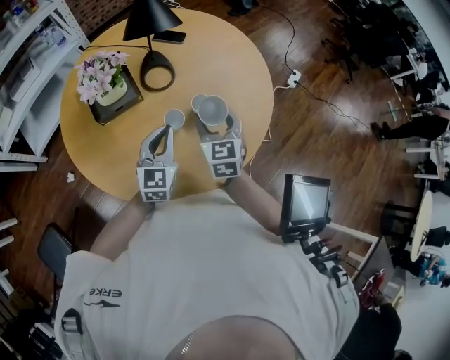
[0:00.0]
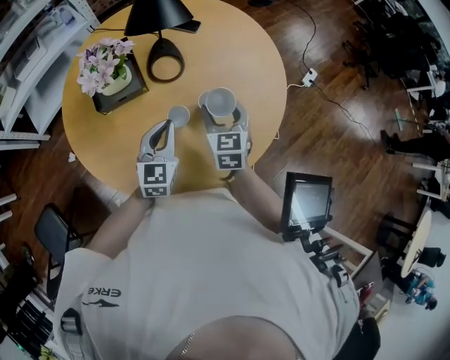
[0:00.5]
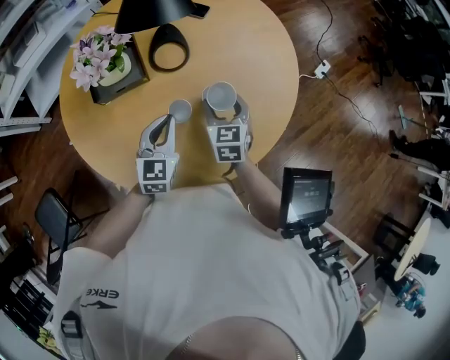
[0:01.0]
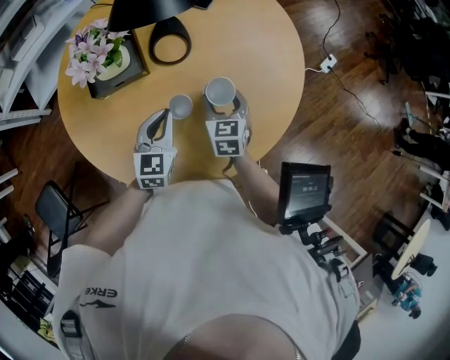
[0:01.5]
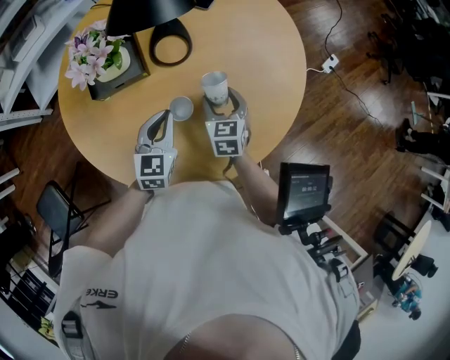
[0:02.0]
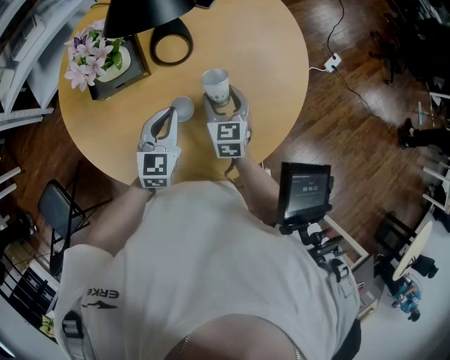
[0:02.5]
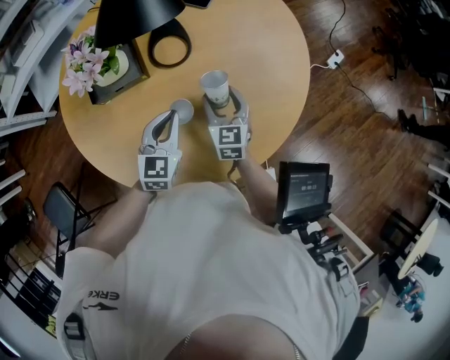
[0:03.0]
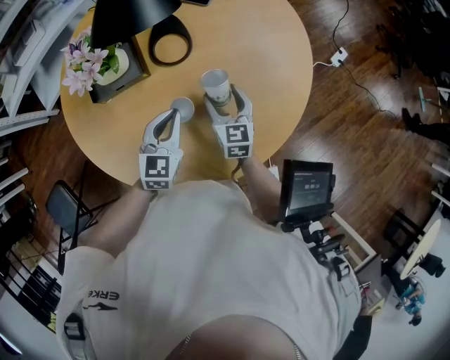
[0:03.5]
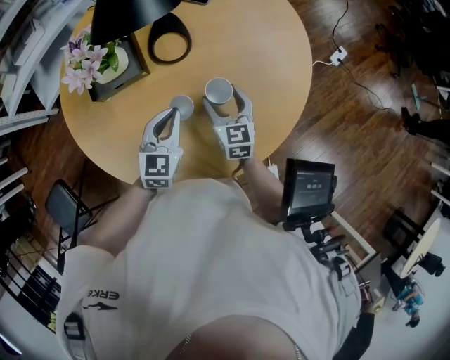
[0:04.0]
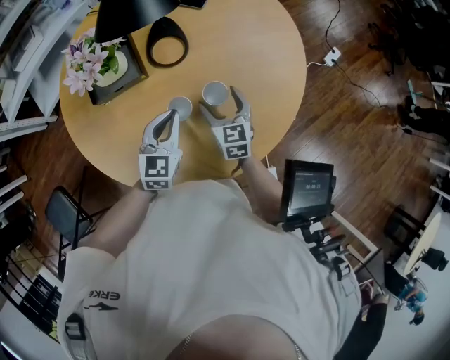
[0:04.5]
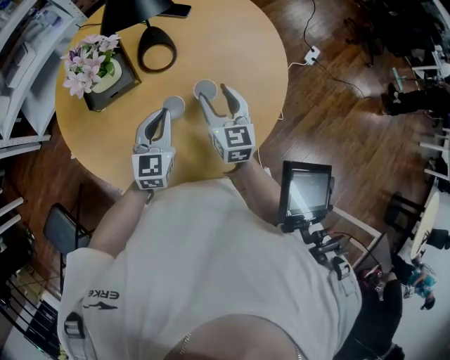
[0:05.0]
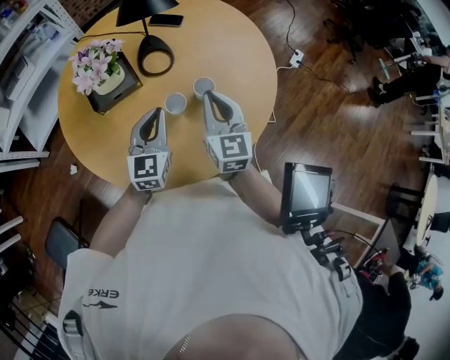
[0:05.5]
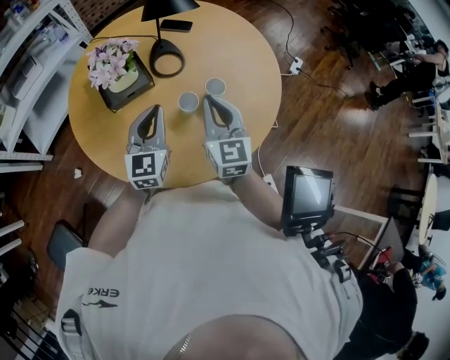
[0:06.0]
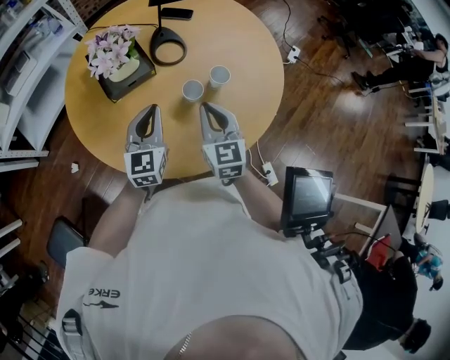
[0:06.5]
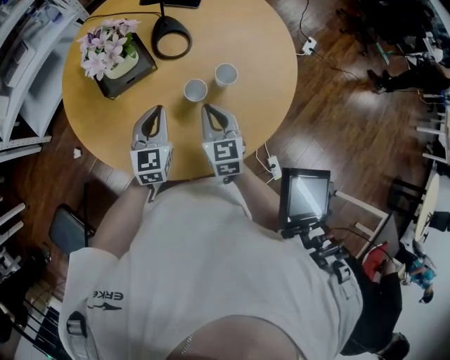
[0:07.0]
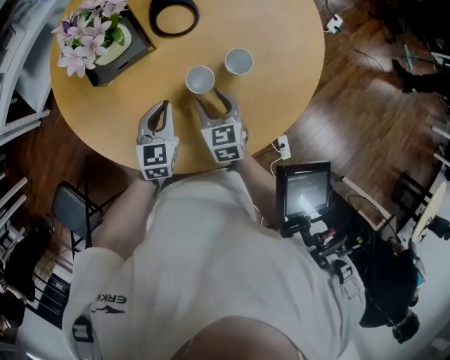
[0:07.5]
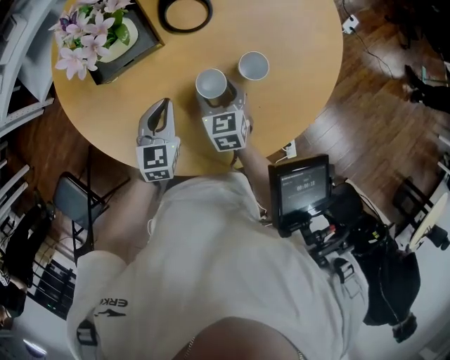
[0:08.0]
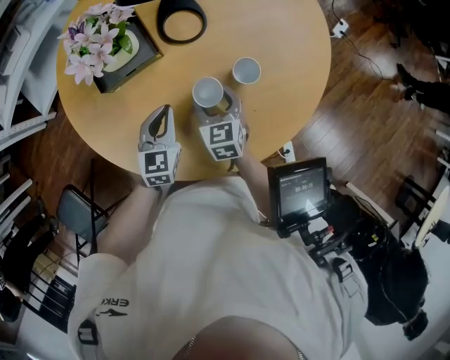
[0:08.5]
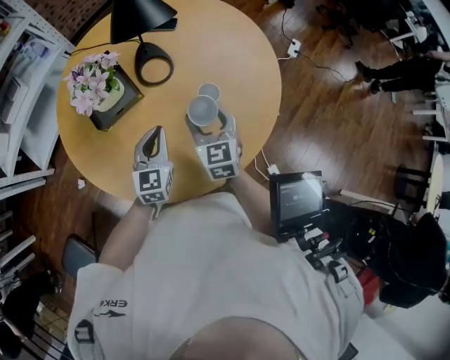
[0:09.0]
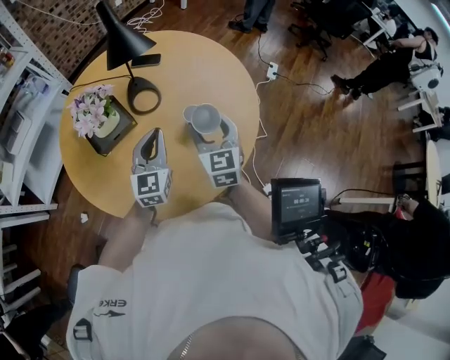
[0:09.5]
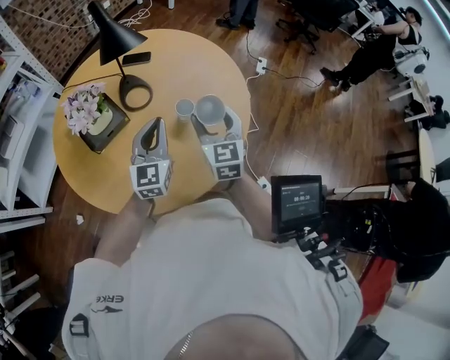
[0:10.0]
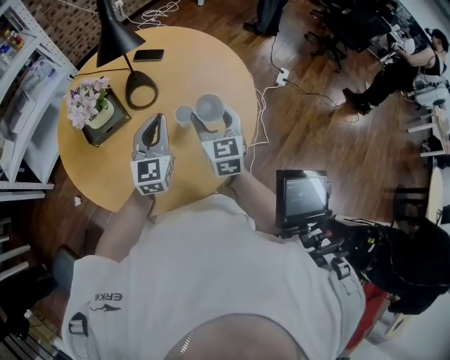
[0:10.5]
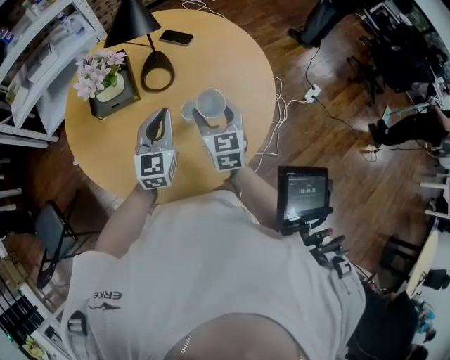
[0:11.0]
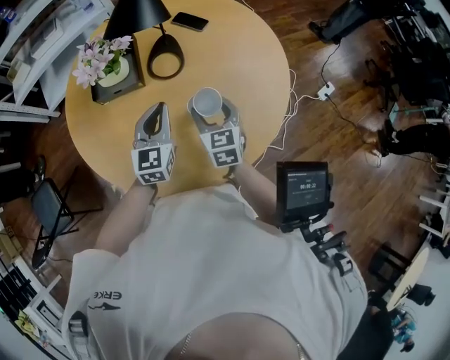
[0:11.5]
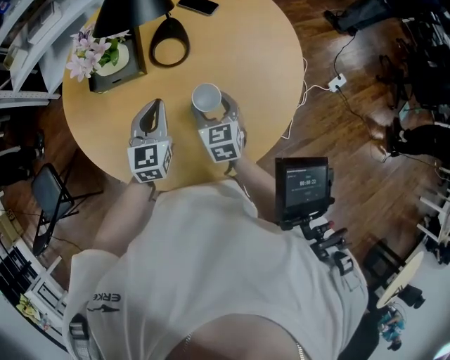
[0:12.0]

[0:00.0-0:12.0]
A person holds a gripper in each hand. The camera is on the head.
0:00.0 to 0:02.0: The right gripper is displaced downward and forward by some 15 cm; the left gripper heads downward, covering roughly 5 cm.
0:02.0 to 0:04.0: The grippers make only small movements.
0:04.0 to 0:06.0: The left gripper is displaced upward, to the left and backward by some 15 cm, and turns by approximately 20 degrees; the right gripper travels upward and backward by some 20 cm, rotates some 20 degrees, and closes up.
0:06.0 to 0:08.0: Both grippers travel together downward, about 25 cm. The right gripper angles its fingers downward, by about 30 degrees, and opens up, while the left gripper changes its angle by roughly 30 degrees.
0:08.0 to 0:10.0: The grippers both shift upward and to the right by roughly 30 cm. The left gripper tips its fingers upward by roughly 30 degrees. The right gripper turns by some 30 degrees.
0:10.0 to 0:12.0: The right gripper moves downward, about 20 cm, and turns by some 40 degrees. The left gripper shifts approximately 10 cm downward, and changes its angle by some 40 degrees.

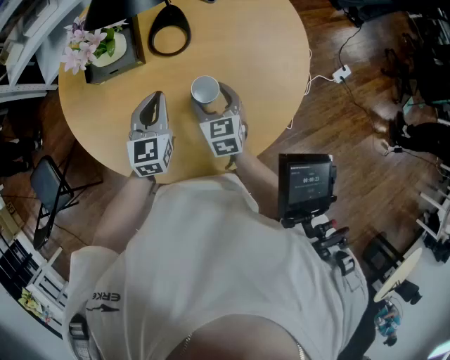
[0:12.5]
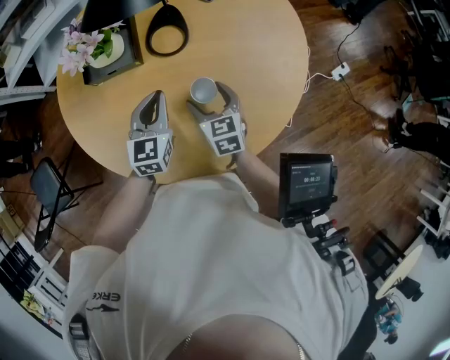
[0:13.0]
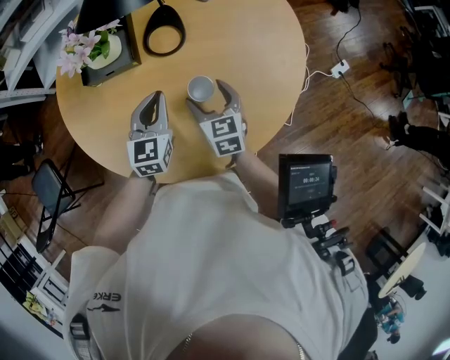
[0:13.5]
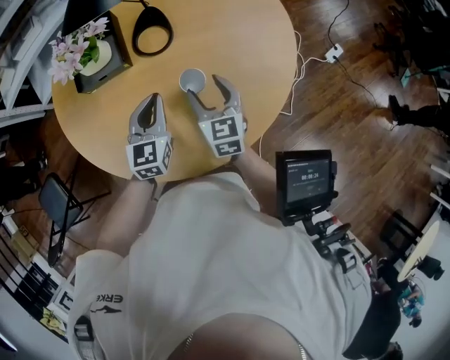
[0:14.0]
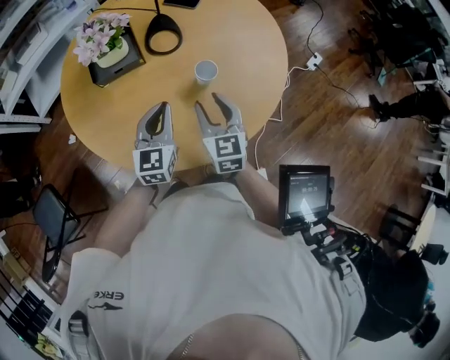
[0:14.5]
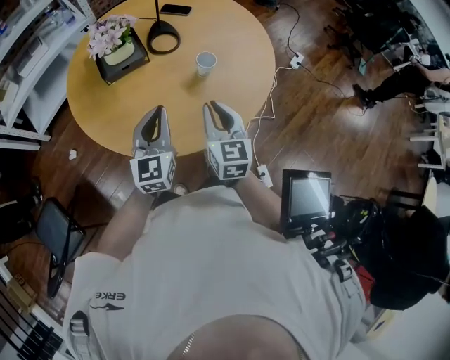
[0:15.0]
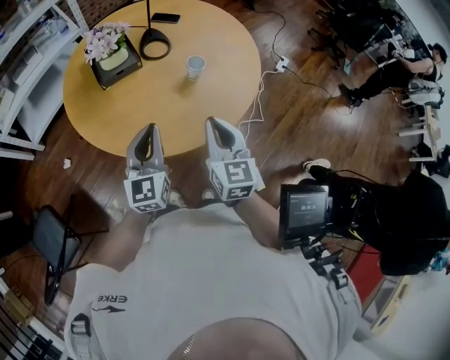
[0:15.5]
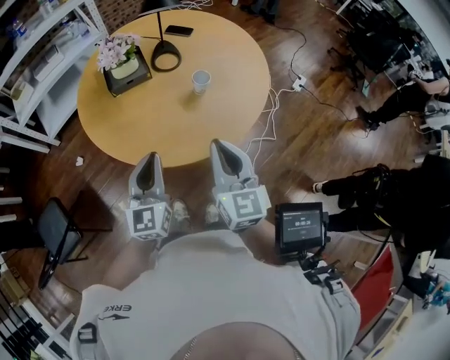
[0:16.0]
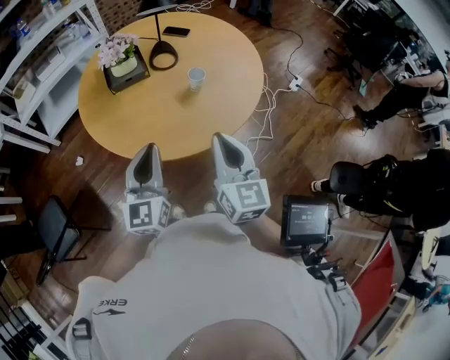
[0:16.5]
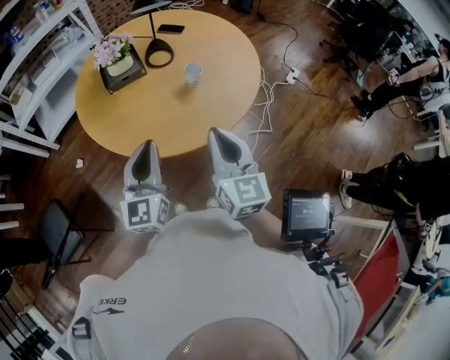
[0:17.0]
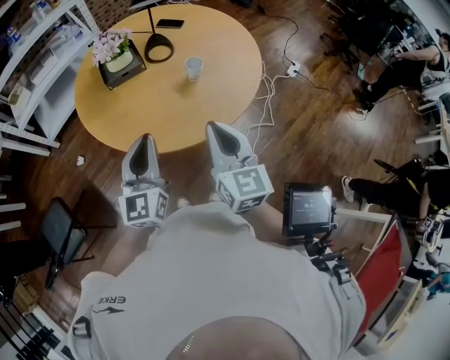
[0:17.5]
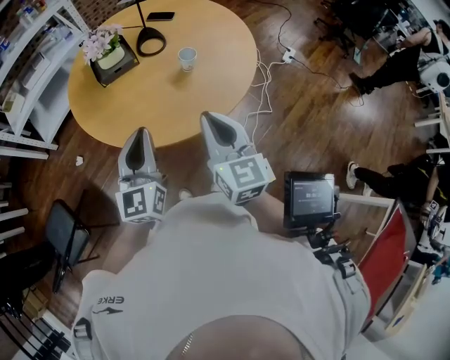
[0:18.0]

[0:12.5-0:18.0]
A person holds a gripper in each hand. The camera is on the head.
0:12.5 to 0:14.5: The right gripper moves backward and upward, roughly 15 cm, and closes its fingers; the left gripper travels backward by about 10 cm.
0:14.5 to 0:16.0: Both grippers travel together backward and upward, about 25 cm. The right gripper closes.
0:16.0 to 0:18.0: The grippers make only small movements.

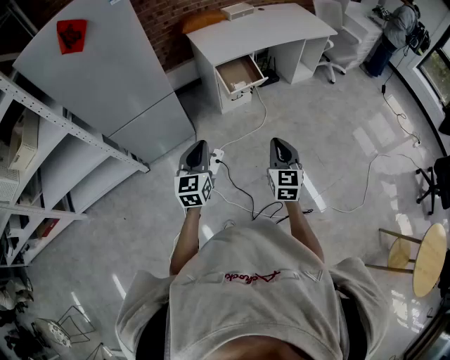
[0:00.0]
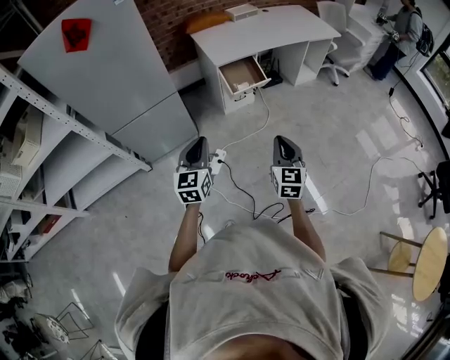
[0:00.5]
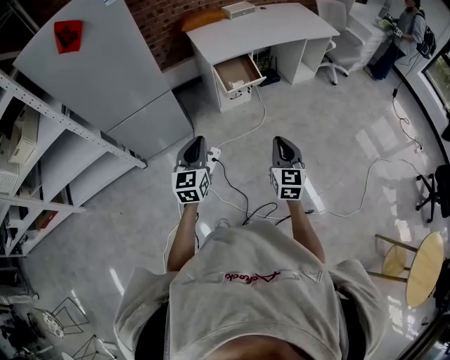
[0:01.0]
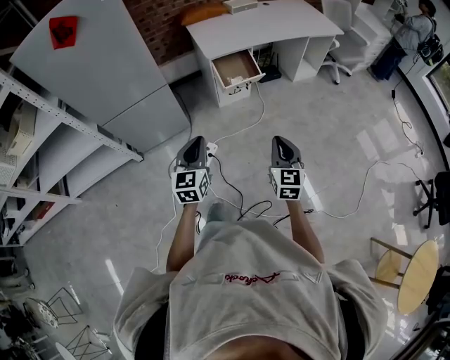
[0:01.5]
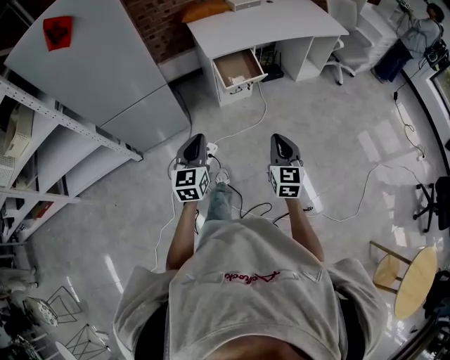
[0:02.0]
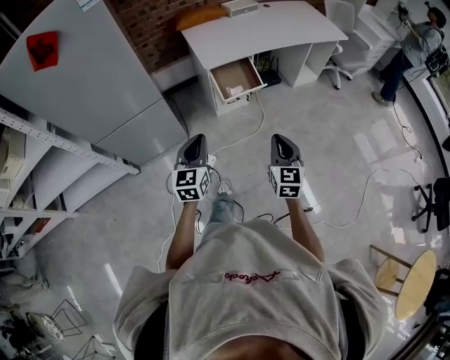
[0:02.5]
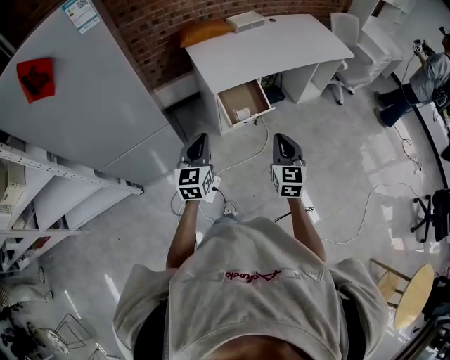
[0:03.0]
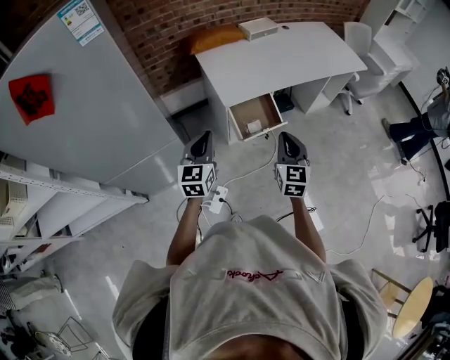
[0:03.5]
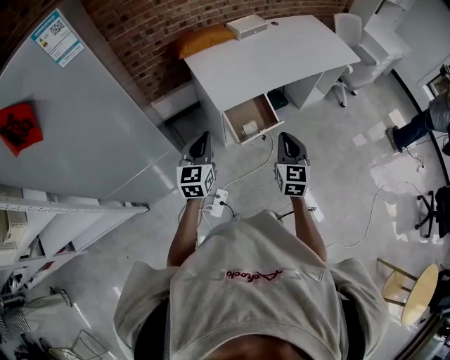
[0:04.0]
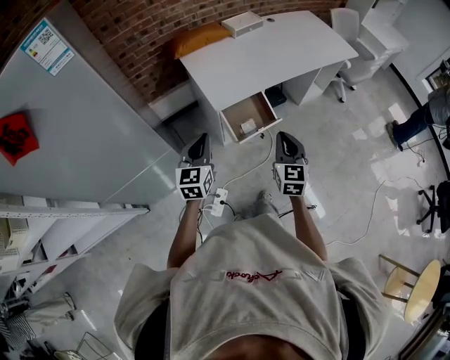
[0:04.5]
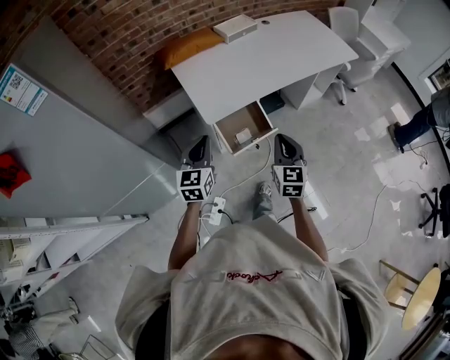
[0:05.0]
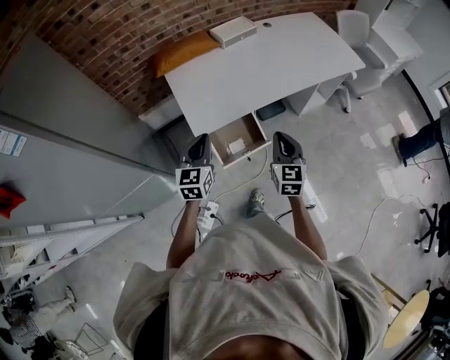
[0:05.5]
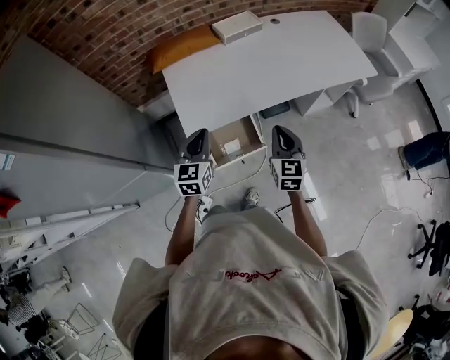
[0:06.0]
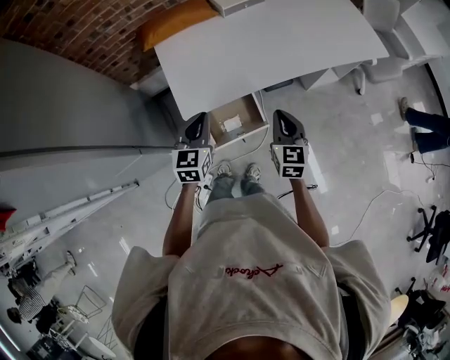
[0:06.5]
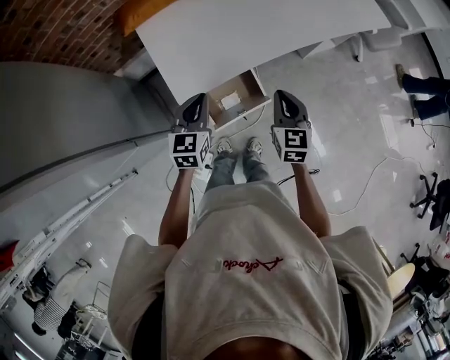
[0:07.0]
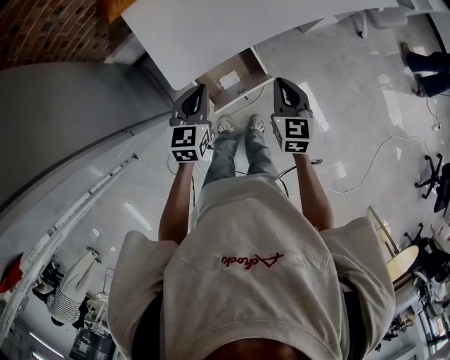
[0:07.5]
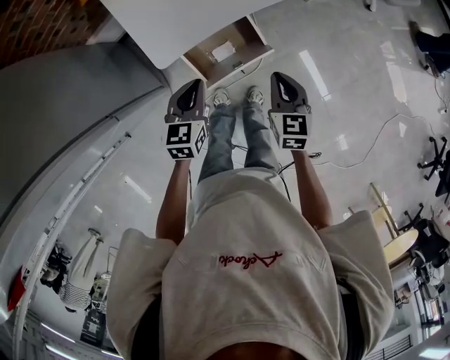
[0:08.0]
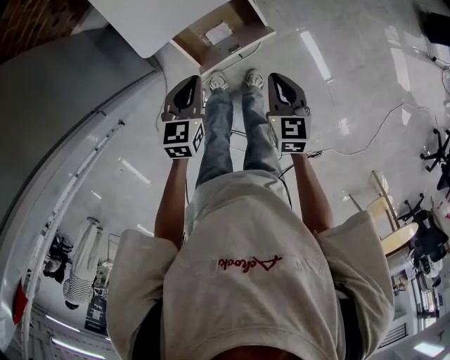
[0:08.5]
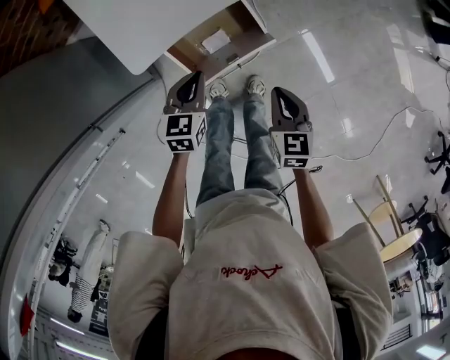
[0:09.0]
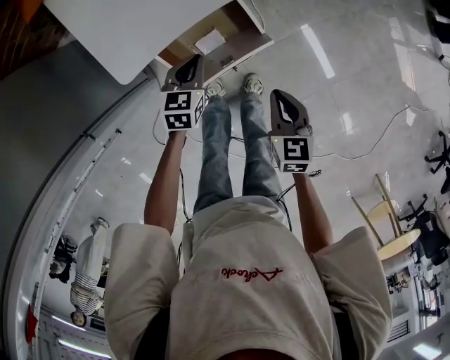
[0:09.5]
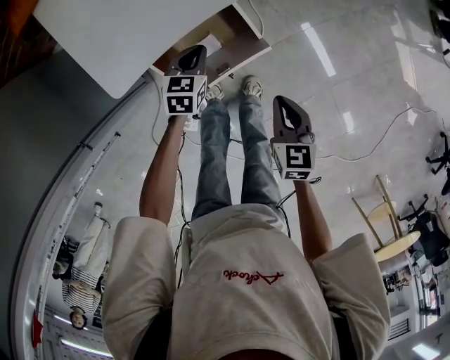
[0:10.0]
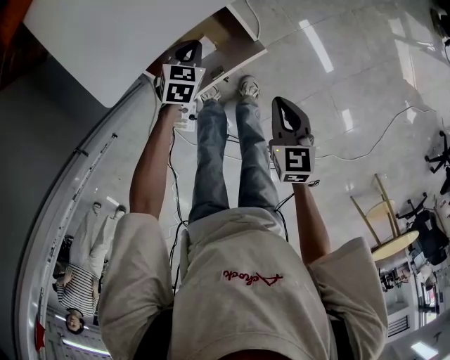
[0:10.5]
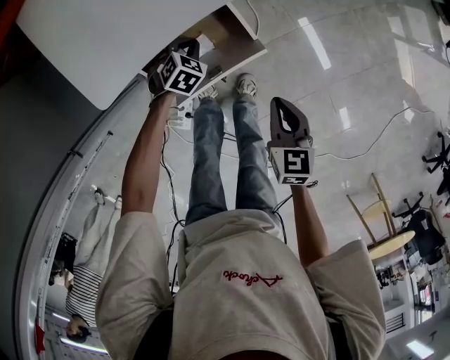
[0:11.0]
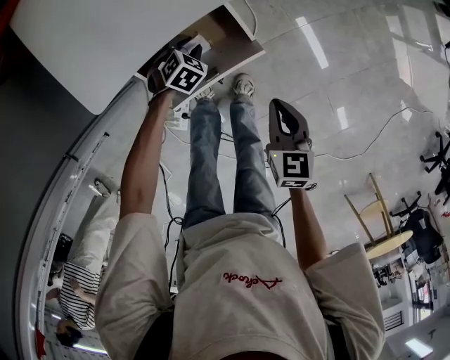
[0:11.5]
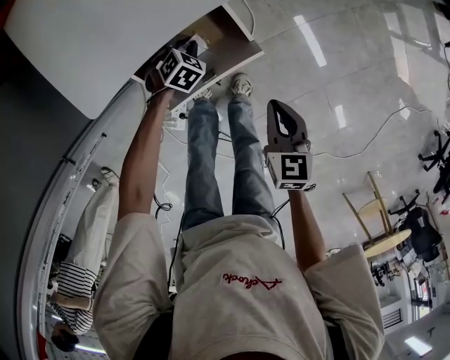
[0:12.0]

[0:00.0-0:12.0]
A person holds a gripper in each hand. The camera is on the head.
0:00.0 to 0:02.0: The right gripper travels to the right and forward by about 10 cm. Meanwhile the left gripper moves to the right, about 5 cm.
0:02.0 to 0:04.0: The grippers both shift forward by approximately 35 cm.
0:04.0 to 0:06.0: The grippers both shift forward and to the right by approximately 25 cm.
0:06.0 to 0:08.0: Both grippers move downward, about 20 cm. The left gripper changes its angle by about 20 degrees. Meanwhile the right gripper changes its angle by about 20 degrees.
0:08.0 to 0:10.0: The left gripper travels downward and forward by some 25 cm. The right gripper shifts about 15 cm downward.
0:10.0 to 0:12.0: The left gripper shifts some 15 cm downward, and swivels about 40 degrees.
